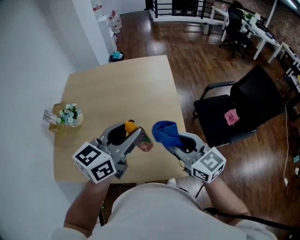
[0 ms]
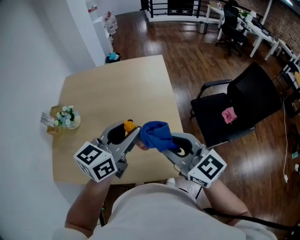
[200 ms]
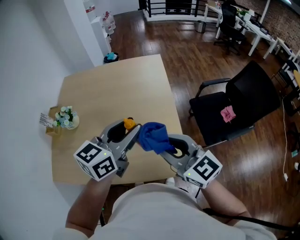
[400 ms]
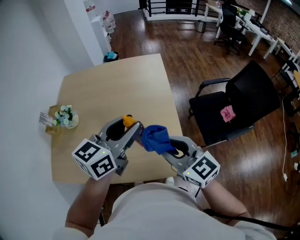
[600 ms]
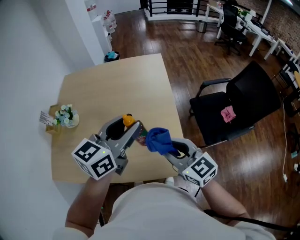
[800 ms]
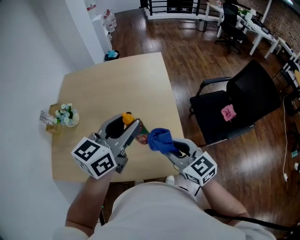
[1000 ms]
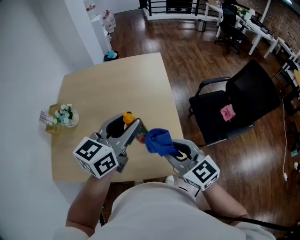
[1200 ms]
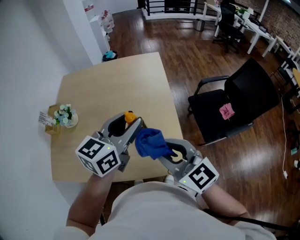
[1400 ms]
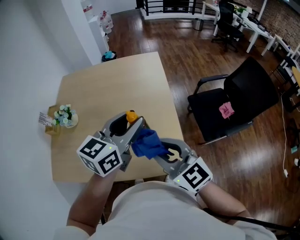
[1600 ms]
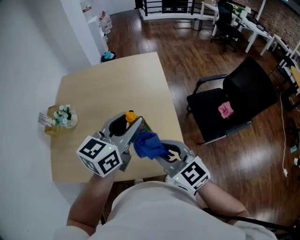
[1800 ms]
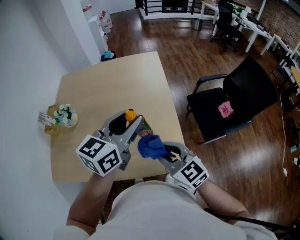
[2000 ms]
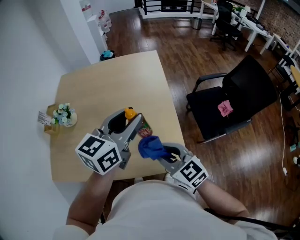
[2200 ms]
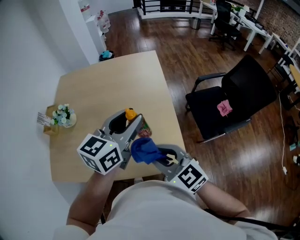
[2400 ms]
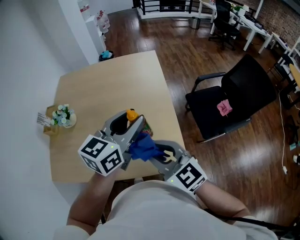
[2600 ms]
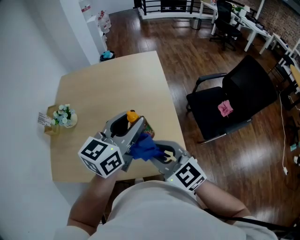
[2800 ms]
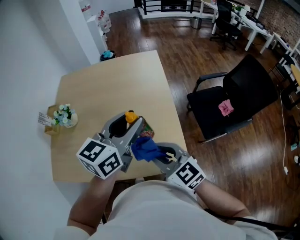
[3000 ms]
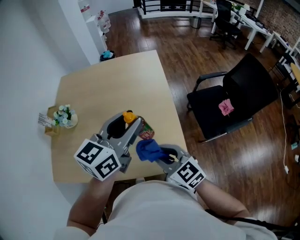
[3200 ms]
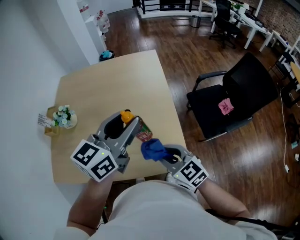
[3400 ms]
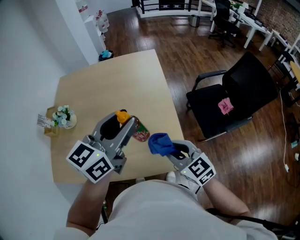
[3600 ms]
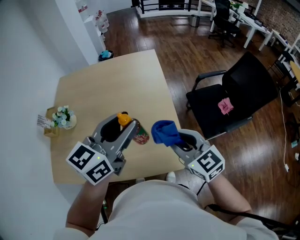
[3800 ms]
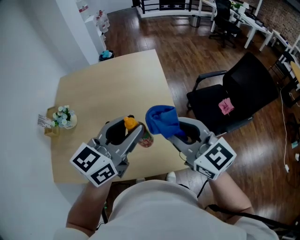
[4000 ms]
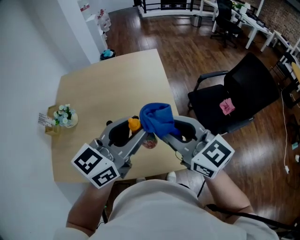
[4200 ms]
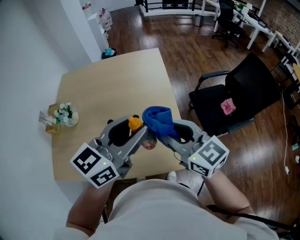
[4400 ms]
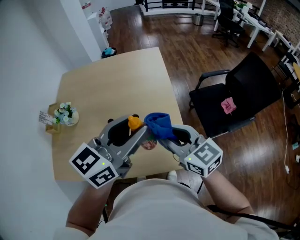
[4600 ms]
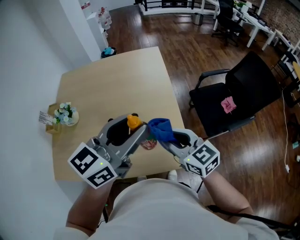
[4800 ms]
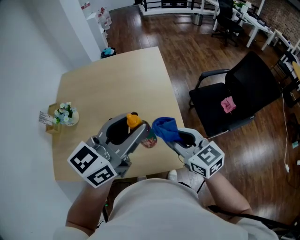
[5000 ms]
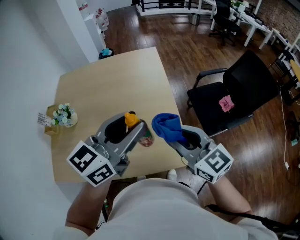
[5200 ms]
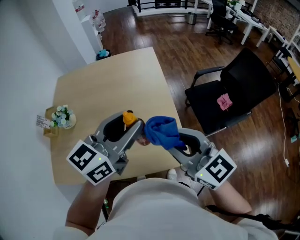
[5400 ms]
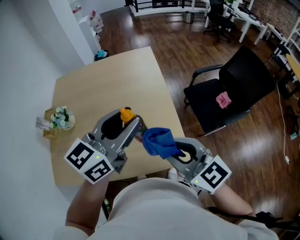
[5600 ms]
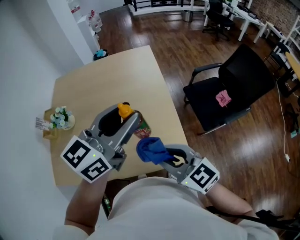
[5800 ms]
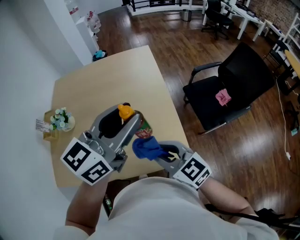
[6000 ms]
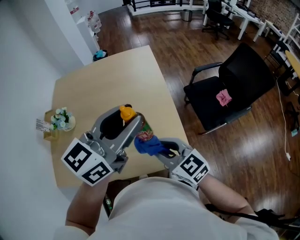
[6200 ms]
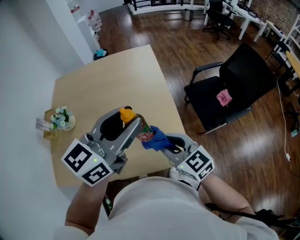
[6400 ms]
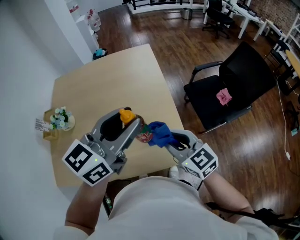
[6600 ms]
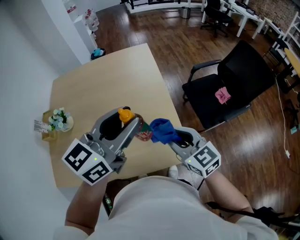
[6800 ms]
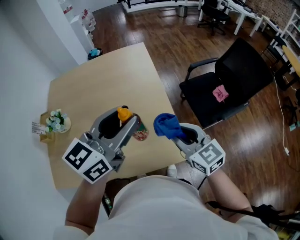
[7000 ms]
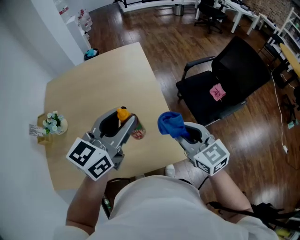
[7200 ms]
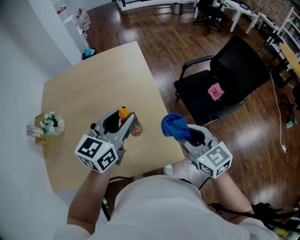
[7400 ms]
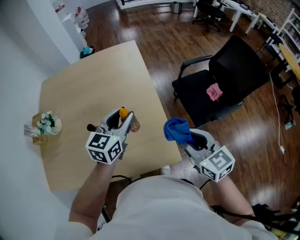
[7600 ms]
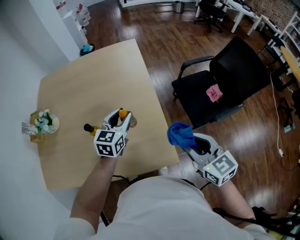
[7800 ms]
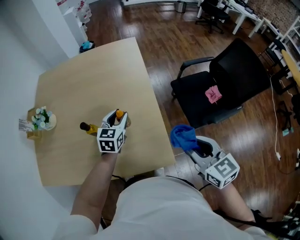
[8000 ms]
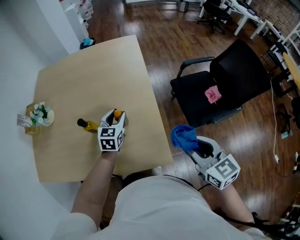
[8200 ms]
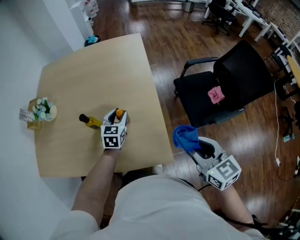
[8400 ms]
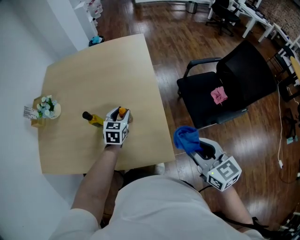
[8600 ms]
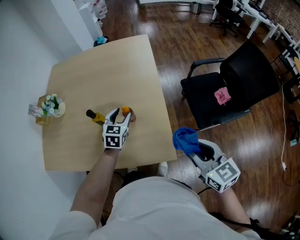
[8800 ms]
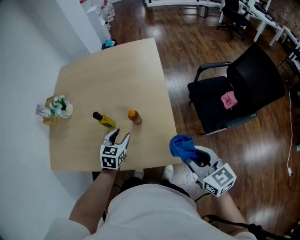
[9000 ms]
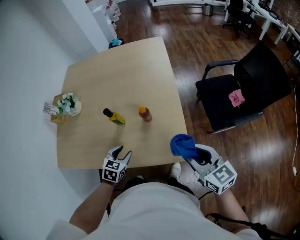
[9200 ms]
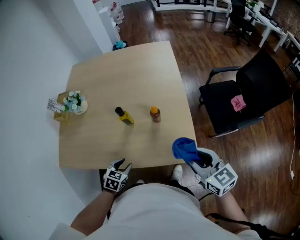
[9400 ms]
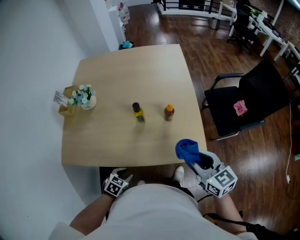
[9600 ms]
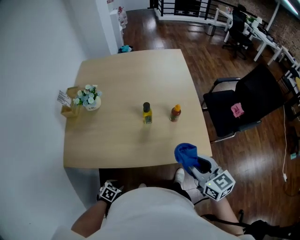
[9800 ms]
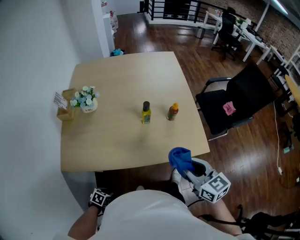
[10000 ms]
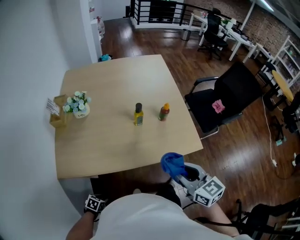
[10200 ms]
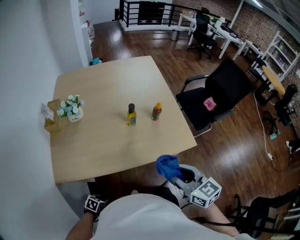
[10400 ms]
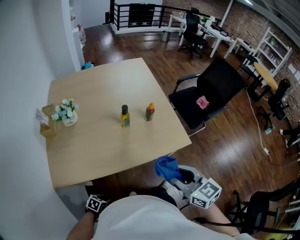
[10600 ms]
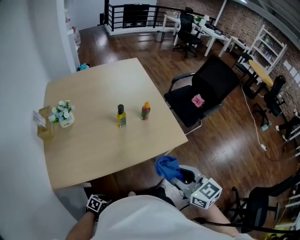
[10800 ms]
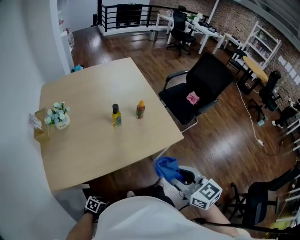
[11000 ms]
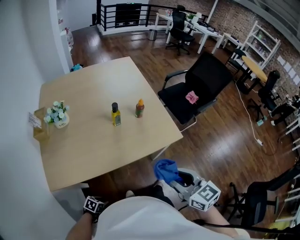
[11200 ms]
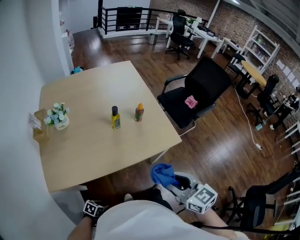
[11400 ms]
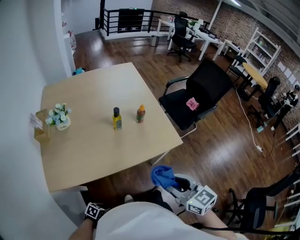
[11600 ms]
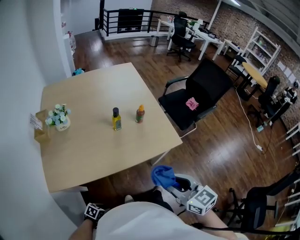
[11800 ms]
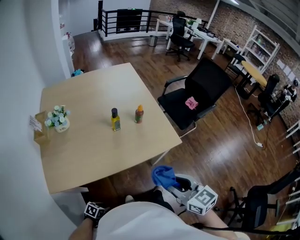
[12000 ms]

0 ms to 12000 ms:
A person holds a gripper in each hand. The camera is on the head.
0 ms to 1600 ms: The right gripper swings up and down, approximately 10 cm each way, with 2 reversals.
1600 ms to 3000 ms: The right gripper moves up and down over roughly 10 cm, changing direction 2 times.
3000 ms to 4400 ms: The right gripper is displaced upward and forward by approximately 10 cm.
4400 ms to 6000 ms: The right gripper moves up and down over roughly 10 cm, changing direction 2 times.
6000 ms to 7600 ms: The left gripper shifts about 20 cm downward and forward; the right gripper goes some 15 cm to the right, and rotates roughly 20 degrees.
7600 ms to 9000 ms: The left gripper is displaced downward, to the left and backward by approximately 20 cm, and turns by about 30 degrees. Meanwhile the right gripper moves backward, roughly 5 cm.
9000 ms to 10400 ms: The right gripper shifts by approximately 35 cm. The left gripper ends up roughly 60 cm from where it was, and changes its angle by roughly 40 degrees.
10400 ms to 12000 ms: The right gripper shifts about 5 cm backward.

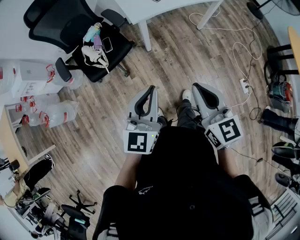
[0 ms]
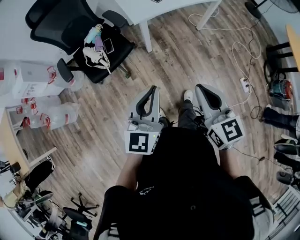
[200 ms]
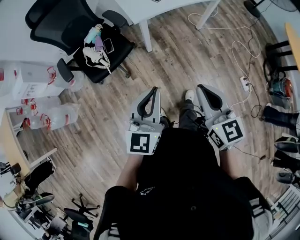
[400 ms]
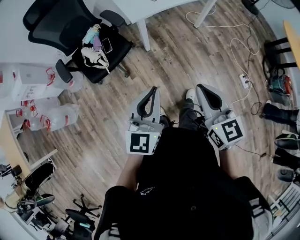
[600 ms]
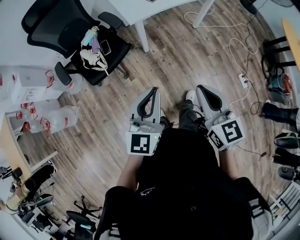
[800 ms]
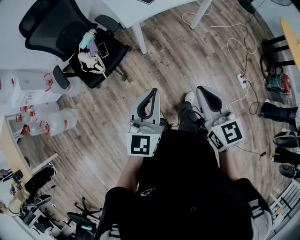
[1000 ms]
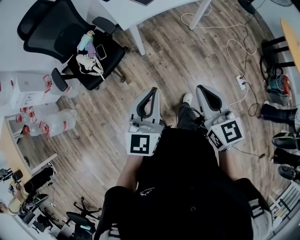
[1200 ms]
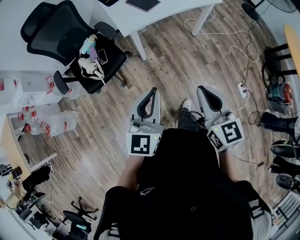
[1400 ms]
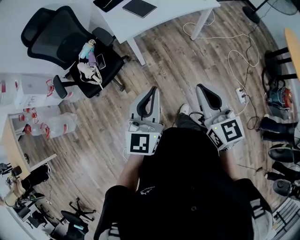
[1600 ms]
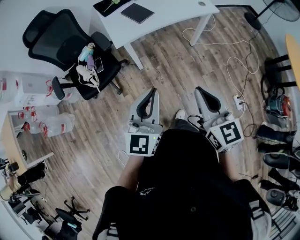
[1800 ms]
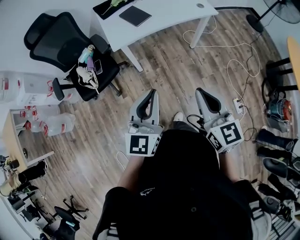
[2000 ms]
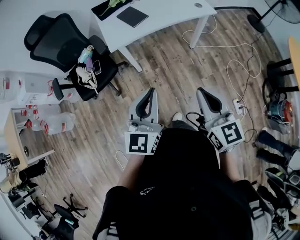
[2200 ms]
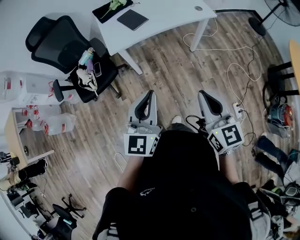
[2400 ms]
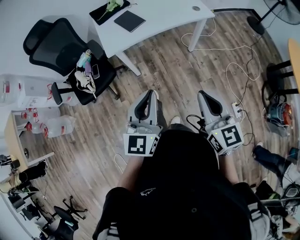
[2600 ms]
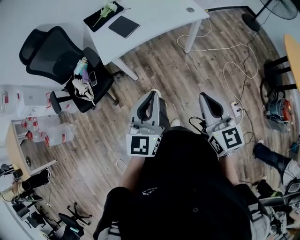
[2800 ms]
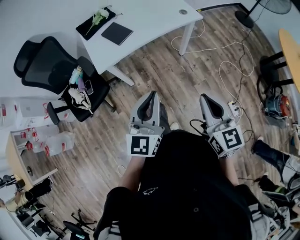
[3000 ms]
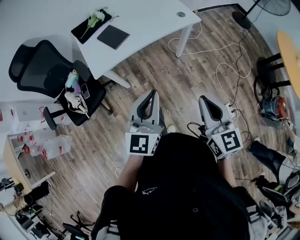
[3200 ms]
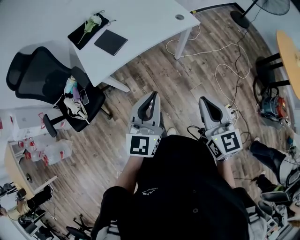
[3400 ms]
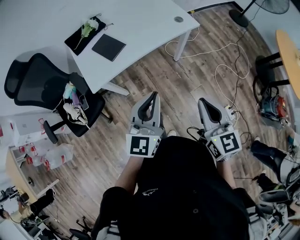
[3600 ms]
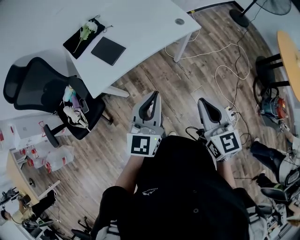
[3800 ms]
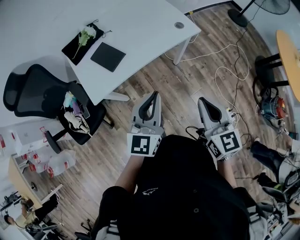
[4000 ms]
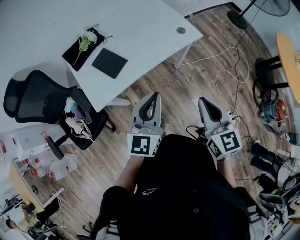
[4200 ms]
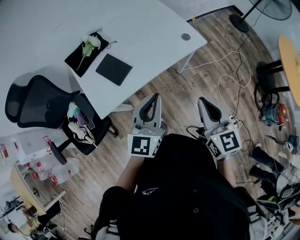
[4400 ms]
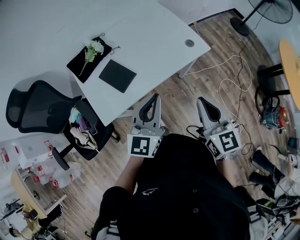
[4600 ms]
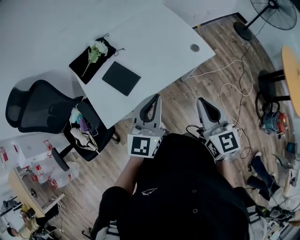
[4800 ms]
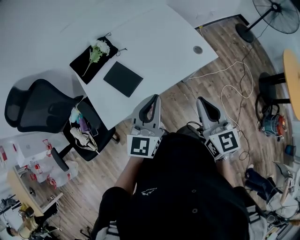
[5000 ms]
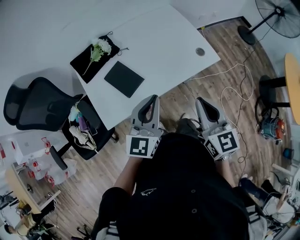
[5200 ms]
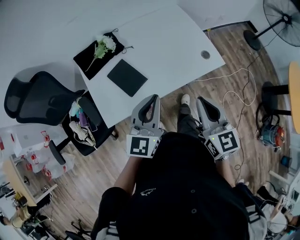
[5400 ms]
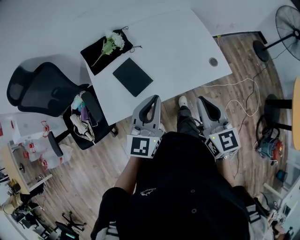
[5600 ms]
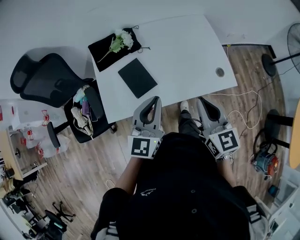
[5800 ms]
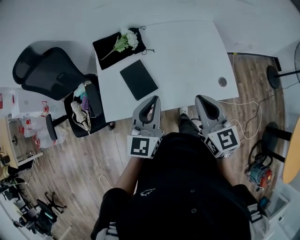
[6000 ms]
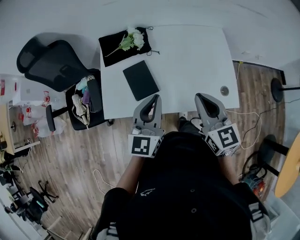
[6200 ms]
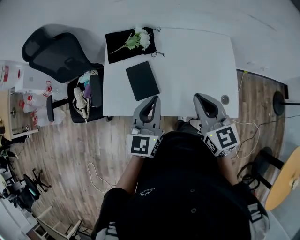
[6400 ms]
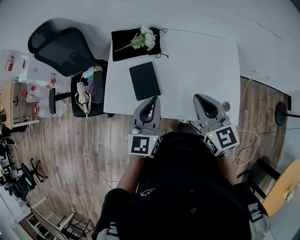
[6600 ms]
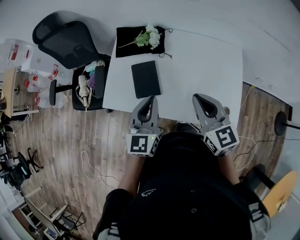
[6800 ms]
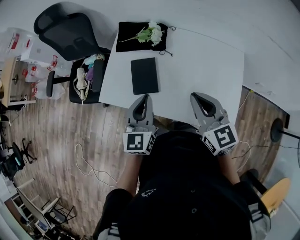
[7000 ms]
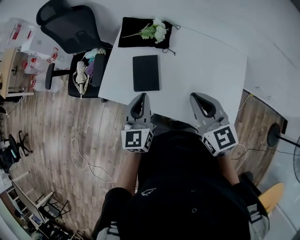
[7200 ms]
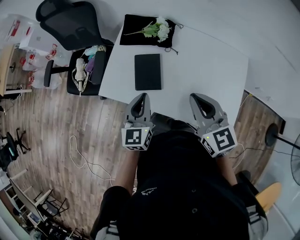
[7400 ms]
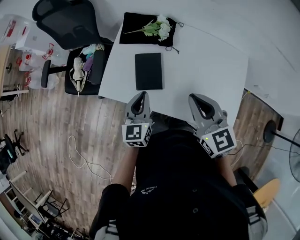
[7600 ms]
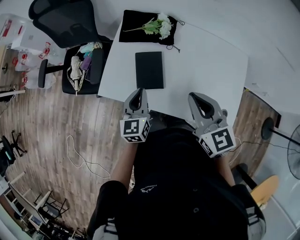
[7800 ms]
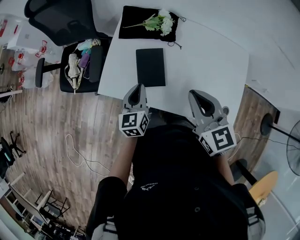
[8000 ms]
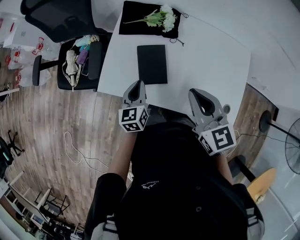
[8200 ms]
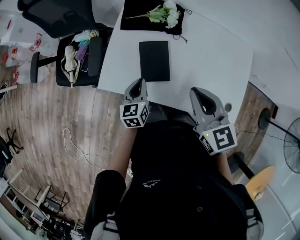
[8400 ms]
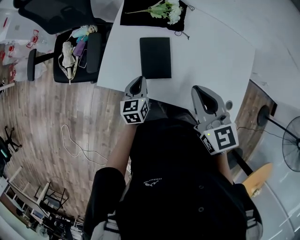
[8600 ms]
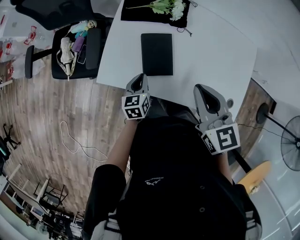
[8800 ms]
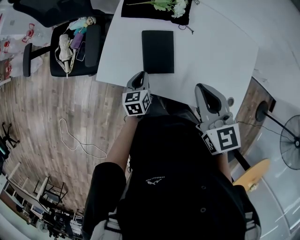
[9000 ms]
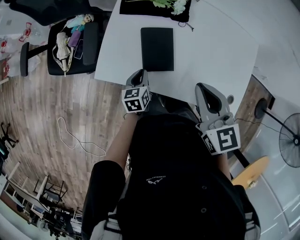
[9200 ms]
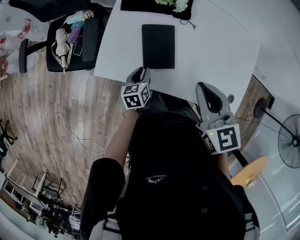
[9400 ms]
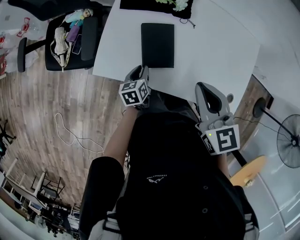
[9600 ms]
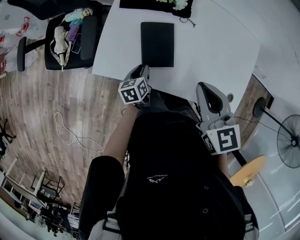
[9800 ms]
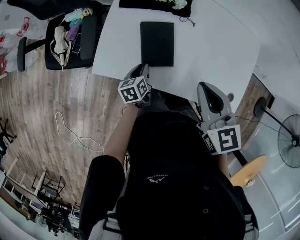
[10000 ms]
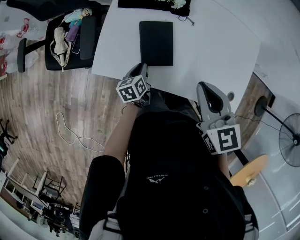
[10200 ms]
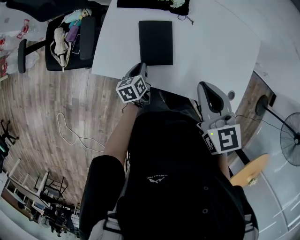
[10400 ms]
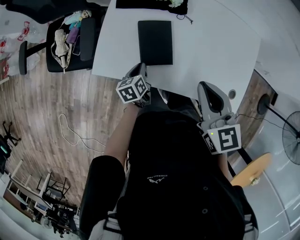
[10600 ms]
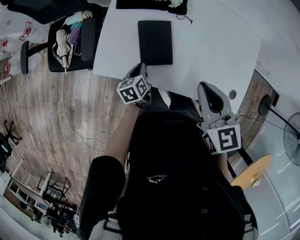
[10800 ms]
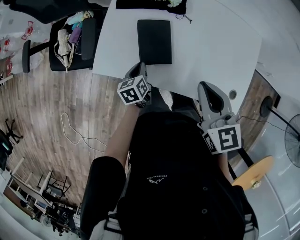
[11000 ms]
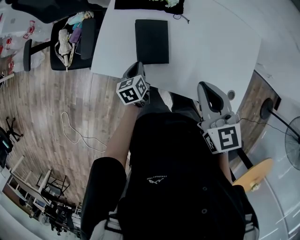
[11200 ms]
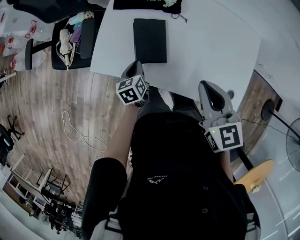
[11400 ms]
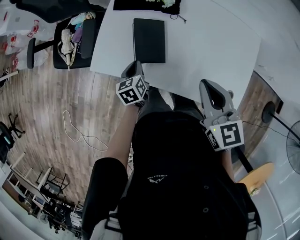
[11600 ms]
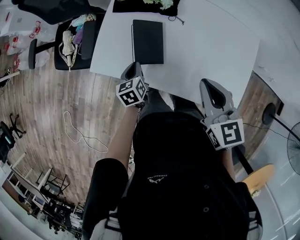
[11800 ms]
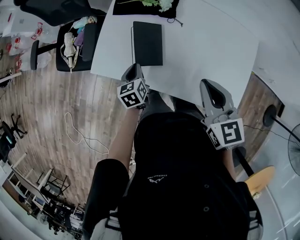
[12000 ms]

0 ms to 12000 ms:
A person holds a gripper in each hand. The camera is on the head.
0 ms to 1600 ms: The grippers both shift to the right and forward by approximately 15 cm.
1600 ms to 3000 ms: The grippers both shift to the right and forward by about 20 cm.
3000 ms to 4400 ms: The two grippers go about 30 cm forward.
4400 ms to 6000 ms: The left gripper moves approximately 20 cm, and rotates approximately 30 degrees, while the right gripper changes place by approximately 25 cm, and swivels approximately 30 degrees.
6000 ms to 7600 ms: The right gripper moves roughly 10 cm, and rotates about 30 degrees; the left gripper heads downward, covering some 10 cm, and rotates some 40 degrees.
7600 ms to 9000 ms: The right gripper goes some 5 cm to the left. Meanwhile the left gripper shifts approximately 20 cm downward, and rotates some 30 degrees.
9000 ms to 10400 ms: The grippers move only a little.
10400 ms to 12000 ms: The left gripper goes some 5 cm upward. Meanwhile the right gripper moves to the right, approximately 10 cm.
